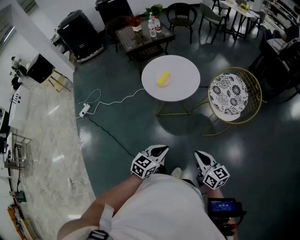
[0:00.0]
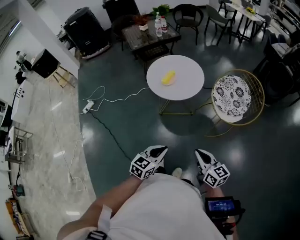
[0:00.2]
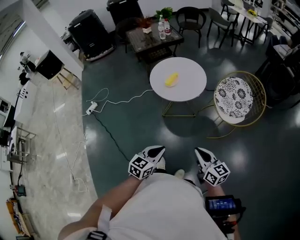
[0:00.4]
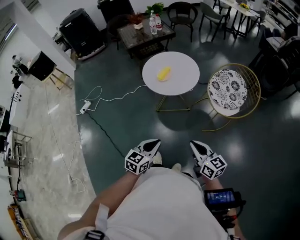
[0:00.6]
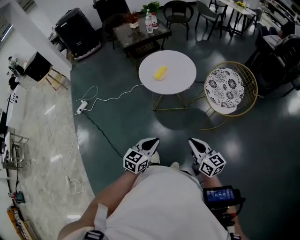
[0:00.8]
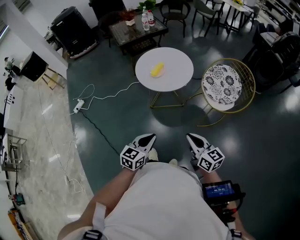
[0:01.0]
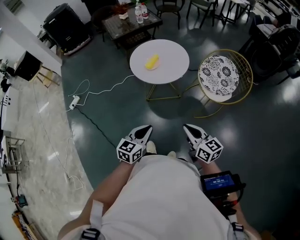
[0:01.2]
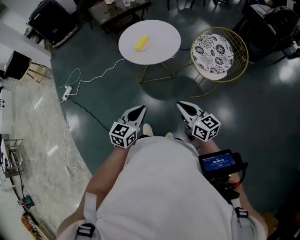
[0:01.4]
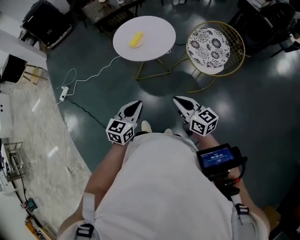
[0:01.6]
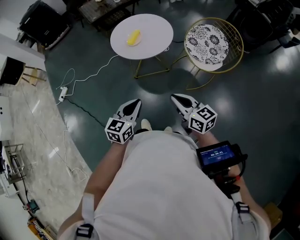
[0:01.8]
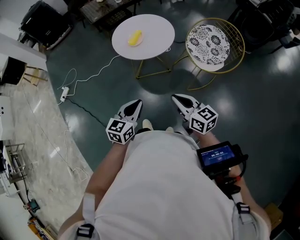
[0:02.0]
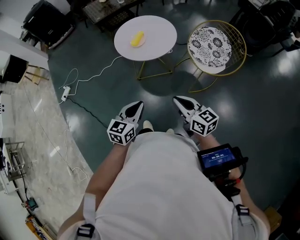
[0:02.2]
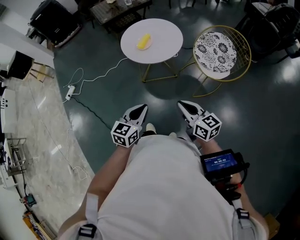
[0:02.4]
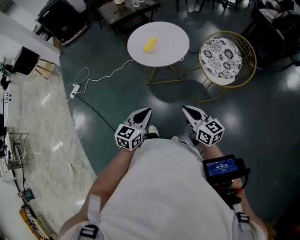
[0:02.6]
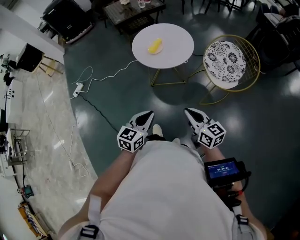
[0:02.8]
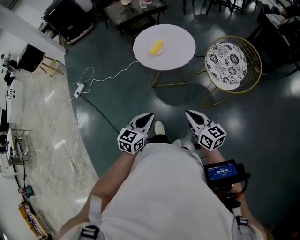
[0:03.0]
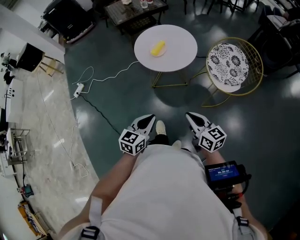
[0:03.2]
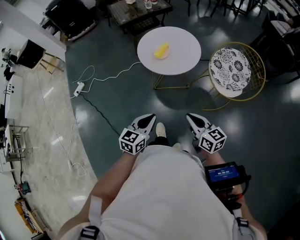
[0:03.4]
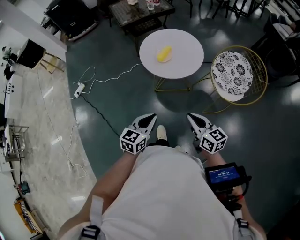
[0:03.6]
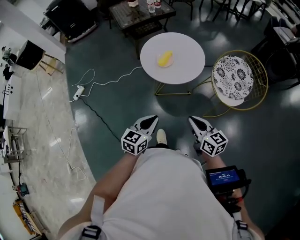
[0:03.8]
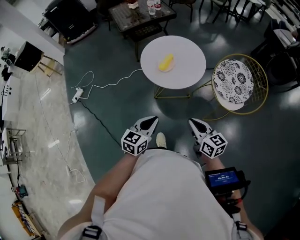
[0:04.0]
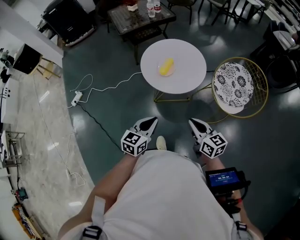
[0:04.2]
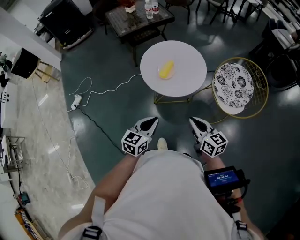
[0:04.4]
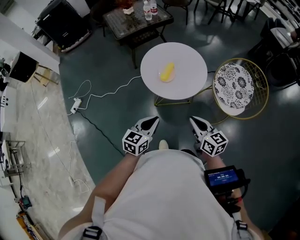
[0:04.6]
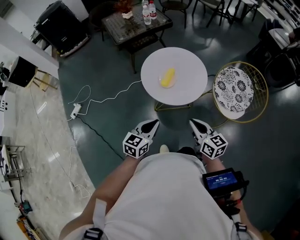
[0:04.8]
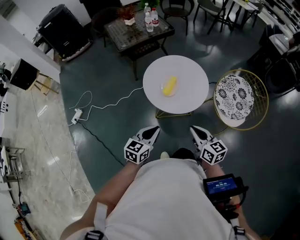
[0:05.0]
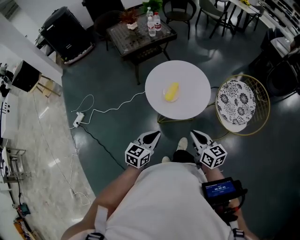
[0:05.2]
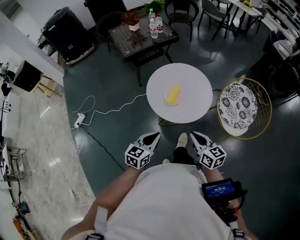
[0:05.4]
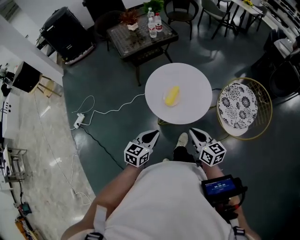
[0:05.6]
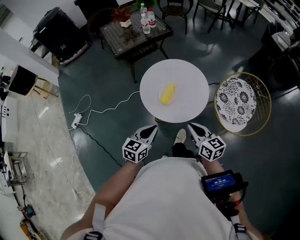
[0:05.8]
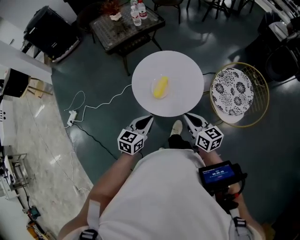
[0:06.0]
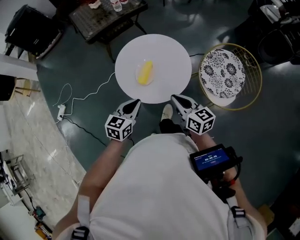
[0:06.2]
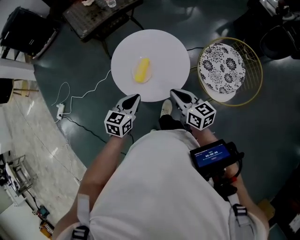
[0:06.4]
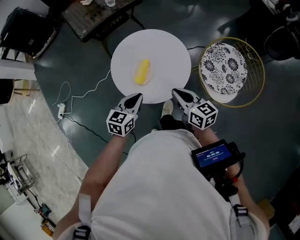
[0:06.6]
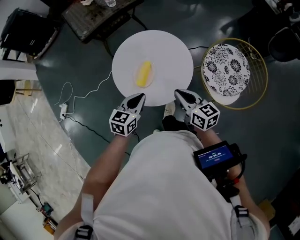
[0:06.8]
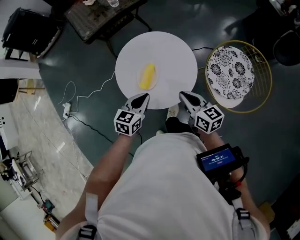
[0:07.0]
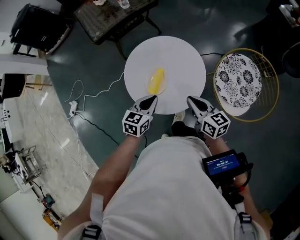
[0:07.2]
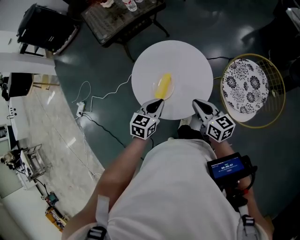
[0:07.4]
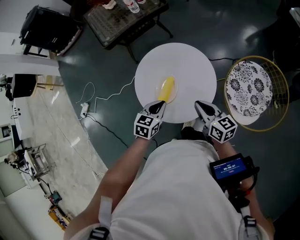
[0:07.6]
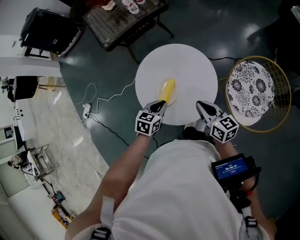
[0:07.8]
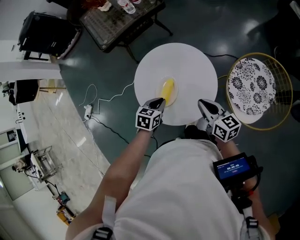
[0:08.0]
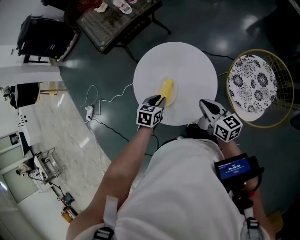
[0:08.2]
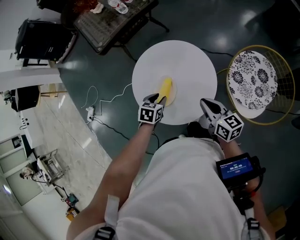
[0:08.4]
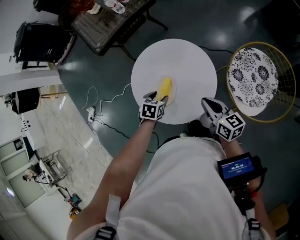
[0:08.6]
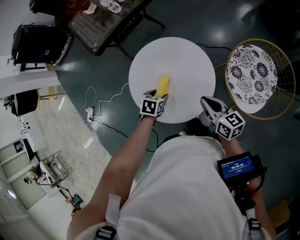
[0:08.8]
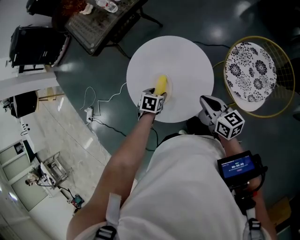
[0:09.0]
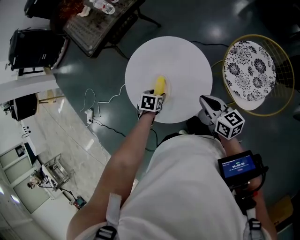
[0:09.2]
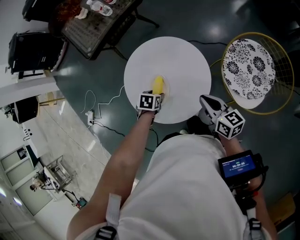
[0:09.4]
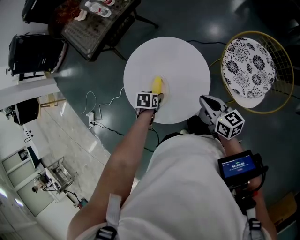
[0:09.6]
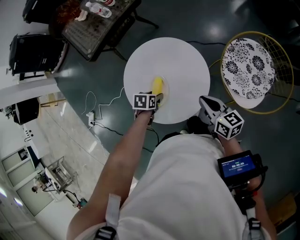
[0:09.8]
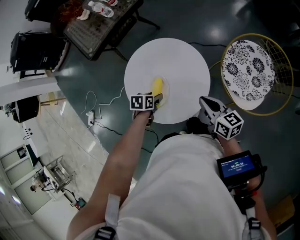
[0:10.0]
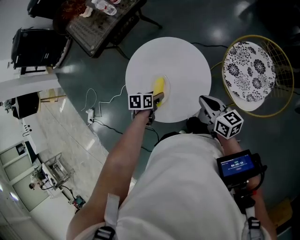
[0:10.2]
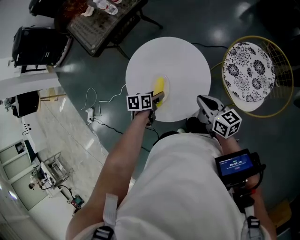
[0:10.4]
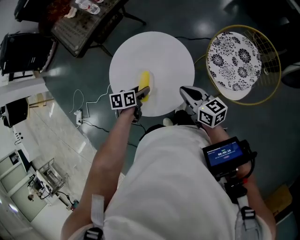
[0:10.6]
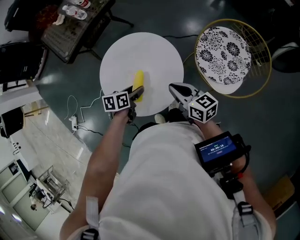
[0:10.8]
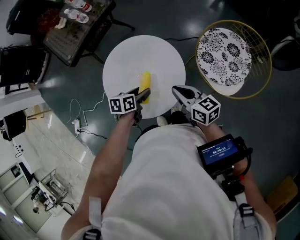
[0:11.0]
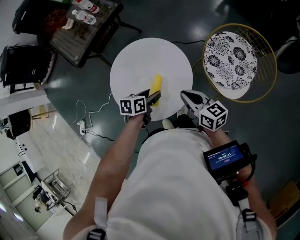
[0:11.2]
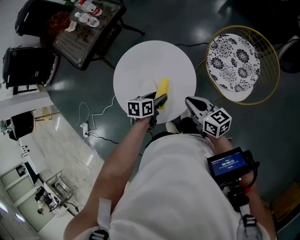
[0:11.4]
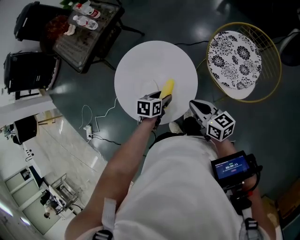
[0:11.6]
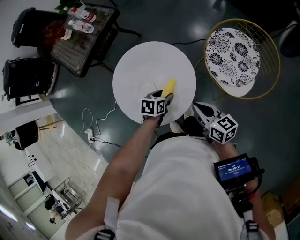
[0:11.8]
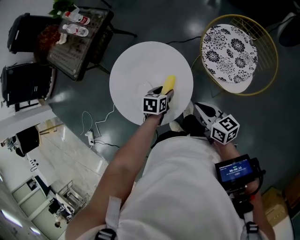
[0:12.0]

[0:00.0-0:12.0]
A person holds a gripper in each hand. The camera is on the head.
0:00.0 to 0:01.6: The left gripper ends up some 5 cm from where it was; the right gripper moves roughly 5 cm.
0:01.6 to 0:03.0: The grippers make only small movements.
0:03.0 to 0:04.4: Both grippers move forward, roughly 20 cm.
0:04.4 to 0:06.0: The two grippers go about 15 cm forward.
0:06.0 to 0:07.6: The left gripper goes some 15 cm forward and downward, while the right gripper shifts about 15 cm forward.
0:07.6 to 0:09.0: The left gripper moves downward and forward, about 15 cm, tips its fingers downward by roughly 30 degrees, and opens up. The right gripper ends up about 5 cm from where it was.
0:09.0 to 0:10.4: The left gripper rotates some 30 degrees.
0:10.4 to 0:12.0: The left gripper is displaced to the right by about 15 cm, and turns by about 30 degrees. The right gripper heads backward, covering approximately 5 cm.

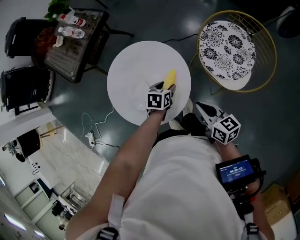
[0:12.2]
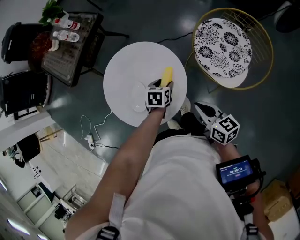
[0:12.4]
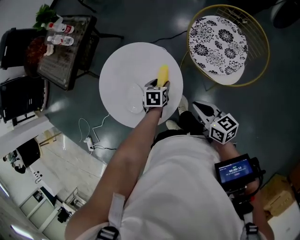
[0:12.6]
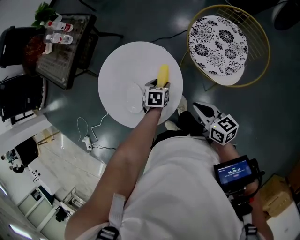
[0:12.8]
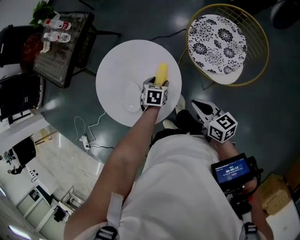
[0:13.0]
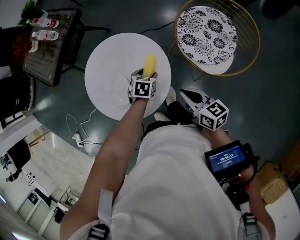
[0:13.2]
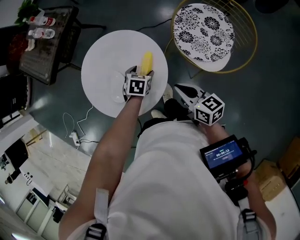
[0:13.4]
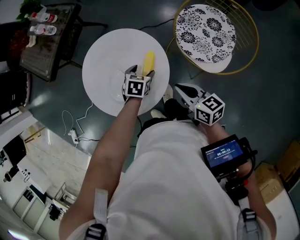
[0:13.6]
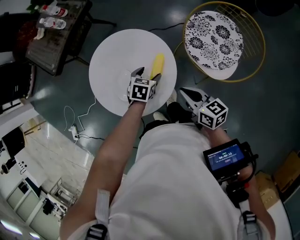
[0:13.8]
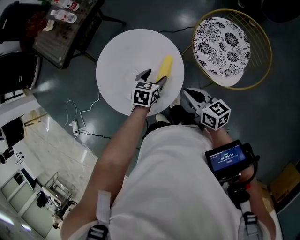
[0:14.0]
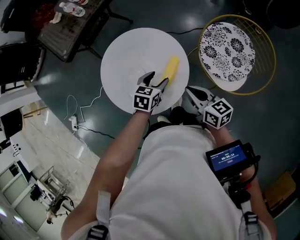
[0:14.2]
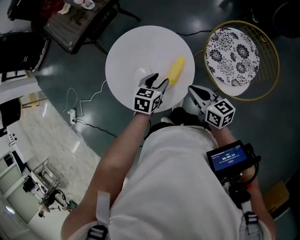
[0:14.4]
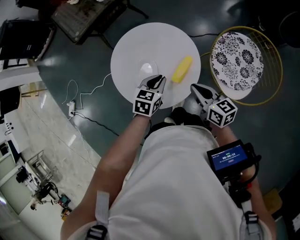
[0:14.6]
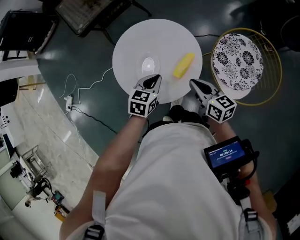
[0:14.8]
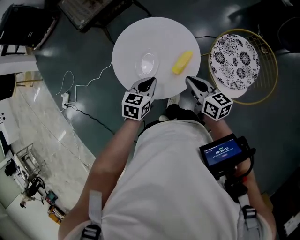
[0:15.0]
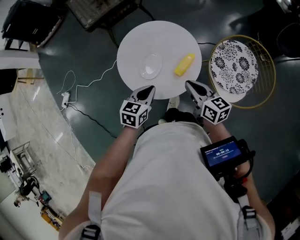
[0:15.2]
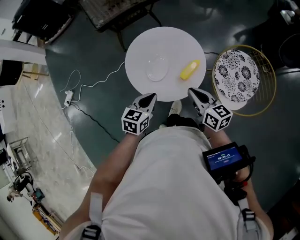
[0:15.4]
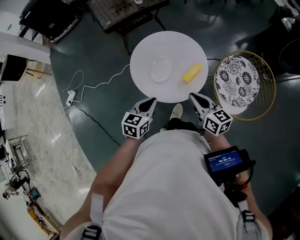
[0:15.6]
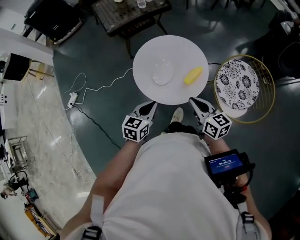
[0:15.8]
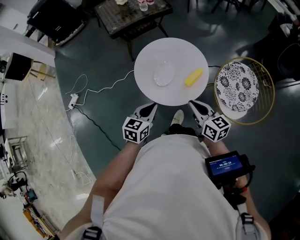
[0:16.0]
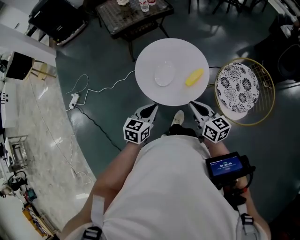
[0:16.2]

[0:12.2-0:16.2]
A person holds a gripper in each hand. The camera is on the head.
0:12.2 to 0:13.6: The grippers move only a little.
0:13.6 to 0:14.8: The left gripper travels upward, to the left and backward by about 15 cm, rotates about 30 degrees, and closes up, while the right gripper goes about 5 cm to the left.
0:14.8 to 0:16.2: The two grippers go roughly 20 cm backward, to the left and upward.

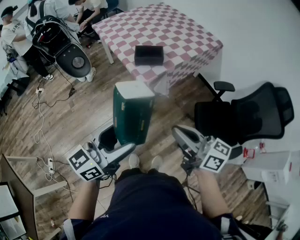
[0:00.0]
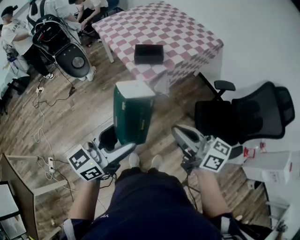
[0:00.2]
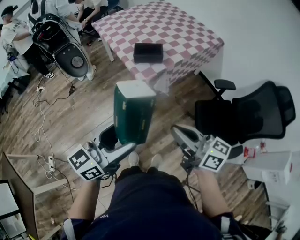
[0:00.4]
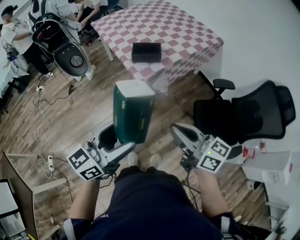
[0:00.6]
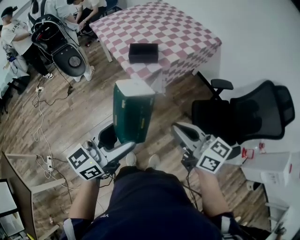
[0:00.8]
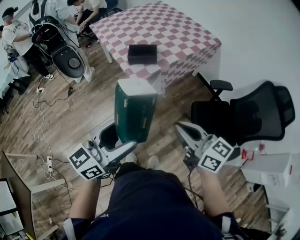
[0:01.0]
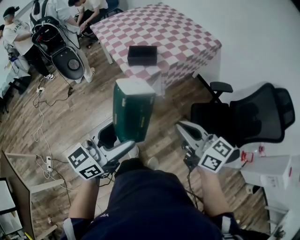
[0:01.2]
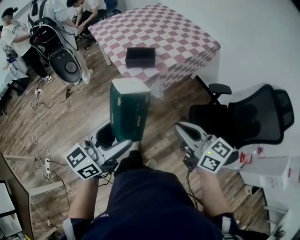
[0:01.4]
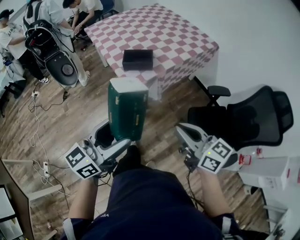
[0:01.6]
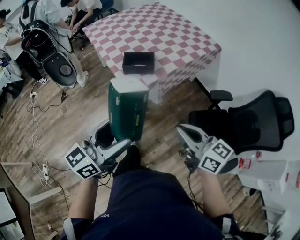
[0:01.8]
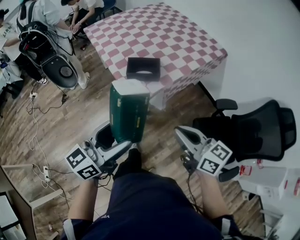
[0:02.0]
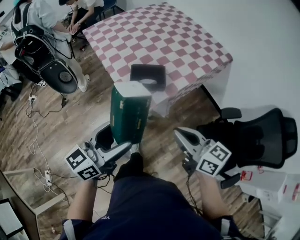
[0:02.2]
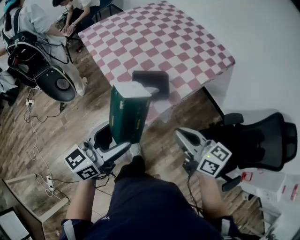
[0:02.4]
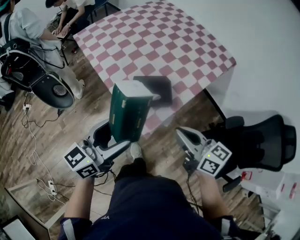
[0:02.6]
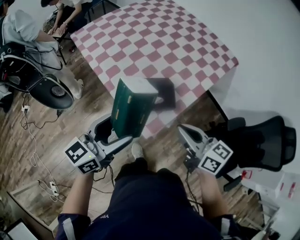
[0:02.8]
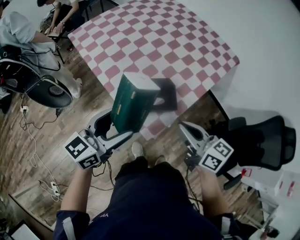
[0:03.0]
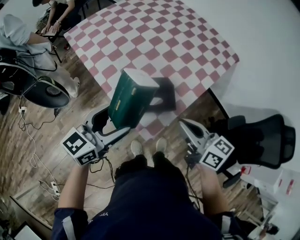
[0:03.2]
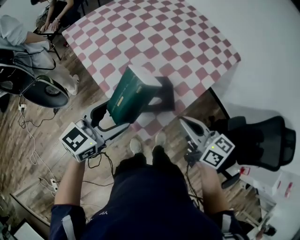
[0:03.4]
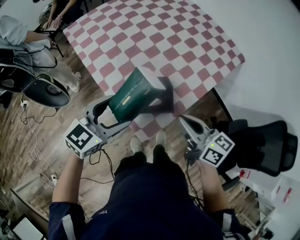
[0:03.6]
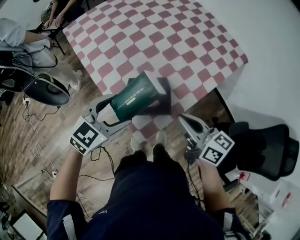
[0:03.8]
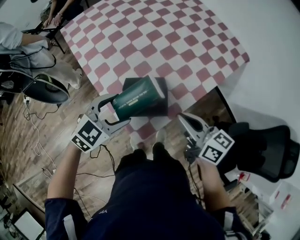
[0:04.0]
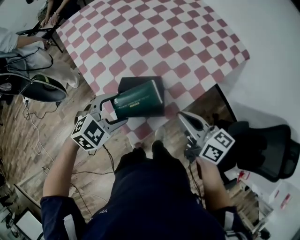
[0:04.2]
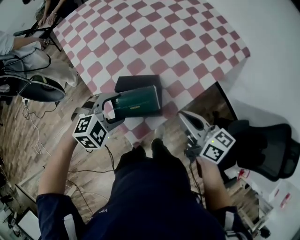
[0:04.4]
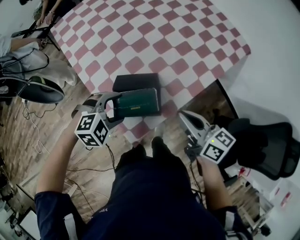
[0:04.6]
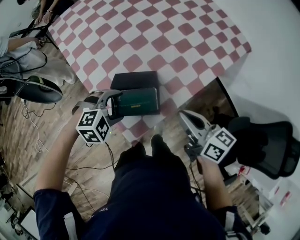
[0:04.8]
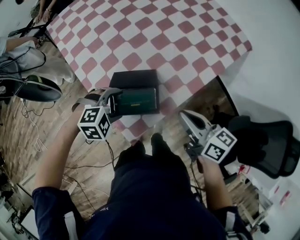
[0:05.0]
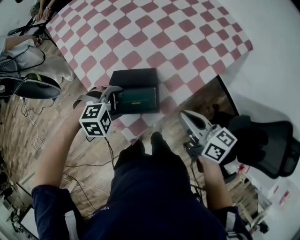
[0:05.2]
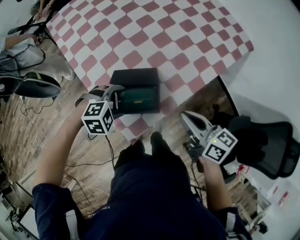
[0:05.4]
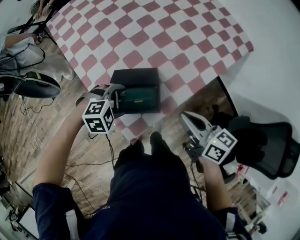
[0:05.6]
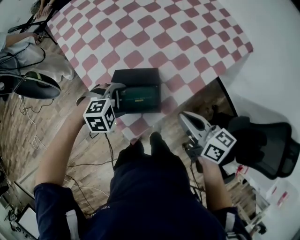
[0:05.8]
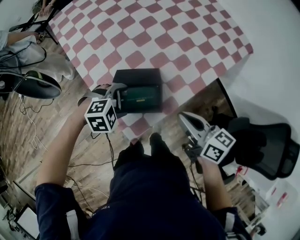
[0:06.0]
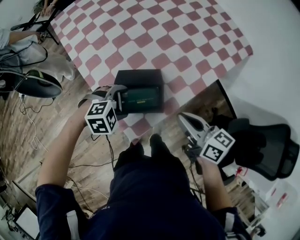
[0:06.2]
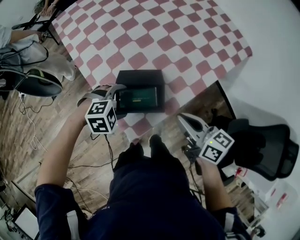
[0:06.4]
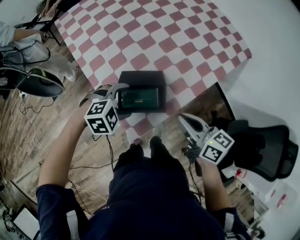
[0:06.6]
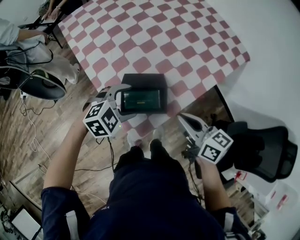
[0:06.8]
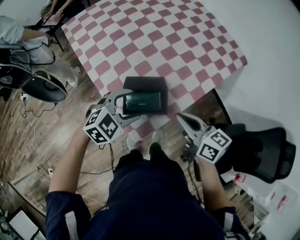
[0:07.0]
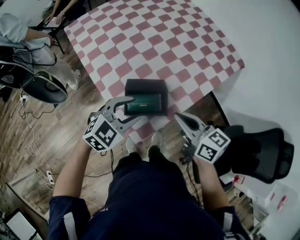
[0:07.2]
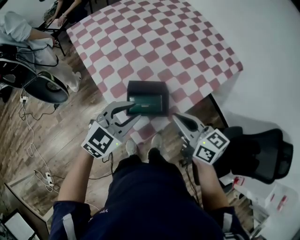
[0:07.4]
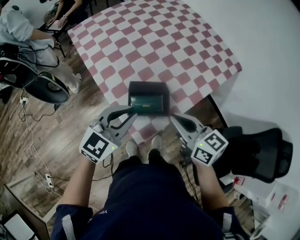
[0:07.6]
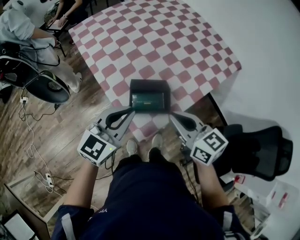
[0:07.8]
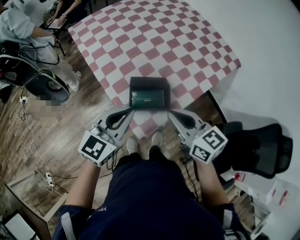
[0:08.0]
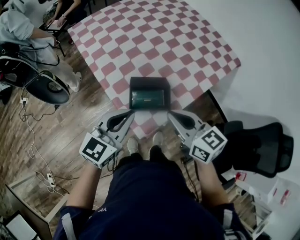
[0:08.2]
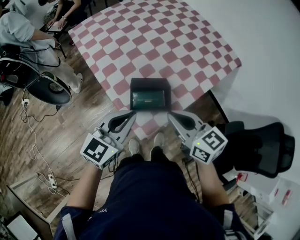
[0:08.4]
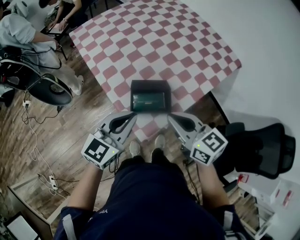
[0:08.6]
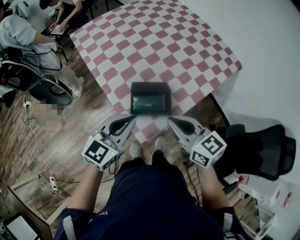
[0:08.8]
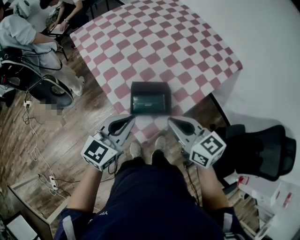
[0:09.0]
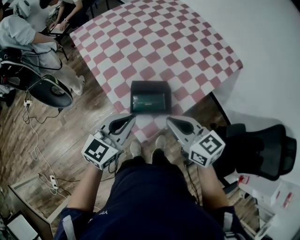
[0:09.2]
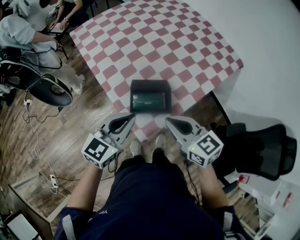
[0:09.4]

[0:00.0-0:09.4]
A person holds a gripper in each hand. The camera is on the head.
0:00.0 to 0:01.6: The left gripper goes some 10 cm forward and to the right, while the right gripper is displaced to the right and forward by approximately 10 cm.
0:01.6 to 0:03.2: Both grippers are carried forward, roughly 40 cm.
0:03.2 to 0:04.8: The right gripper goes about 15 cm to the right, forward and downward, while the left gripper shifts about 20 cm downward and to the right, and tips its fingers downward by about 50 degrees.
0:04.8 to 0:06.2: The grippers make only small movements.
0:06.2 to 0:07.8: The left gripper is displaced upward by approximately 20 cm, angles its fingers upward, by approximately 50 degrees, and closes its fingers. The right gripper heads upward and to the left, covering roughly 15 cm, and changes its angle by some 20 degrees.
0:07.8 to 0:09.4: There are only small adjustments of the grippers.
